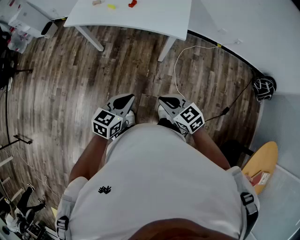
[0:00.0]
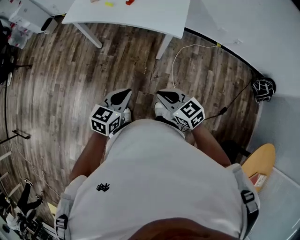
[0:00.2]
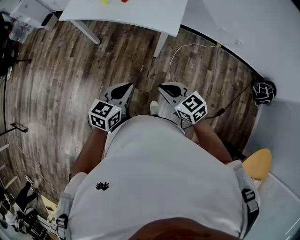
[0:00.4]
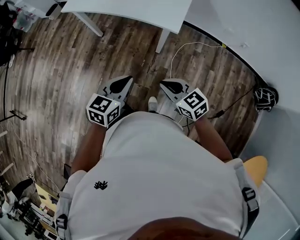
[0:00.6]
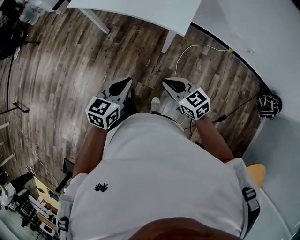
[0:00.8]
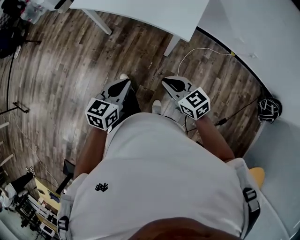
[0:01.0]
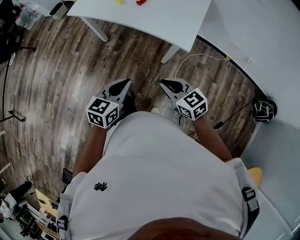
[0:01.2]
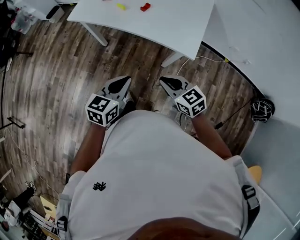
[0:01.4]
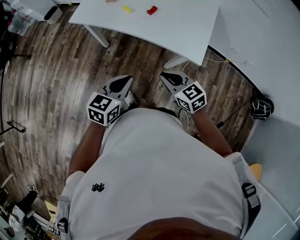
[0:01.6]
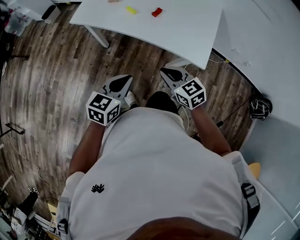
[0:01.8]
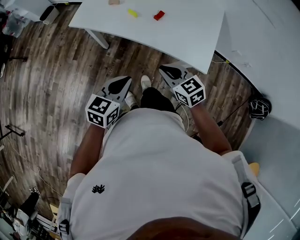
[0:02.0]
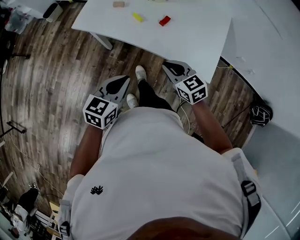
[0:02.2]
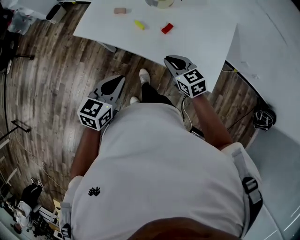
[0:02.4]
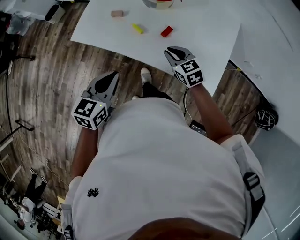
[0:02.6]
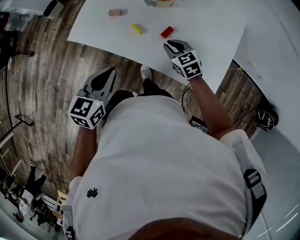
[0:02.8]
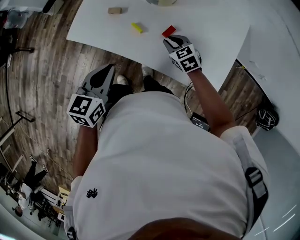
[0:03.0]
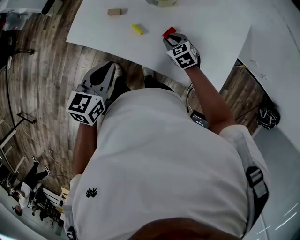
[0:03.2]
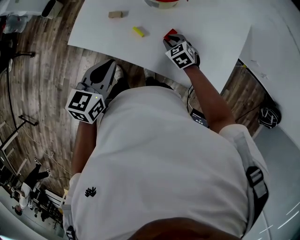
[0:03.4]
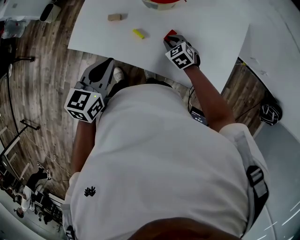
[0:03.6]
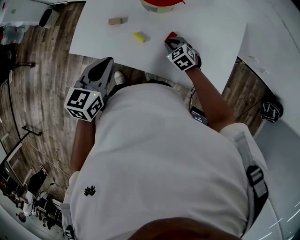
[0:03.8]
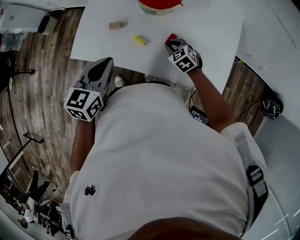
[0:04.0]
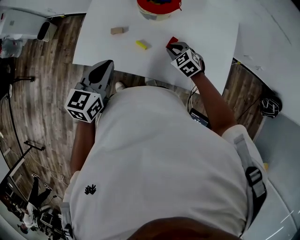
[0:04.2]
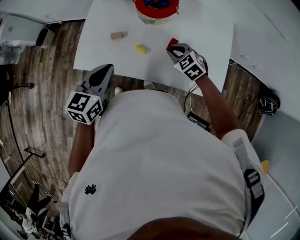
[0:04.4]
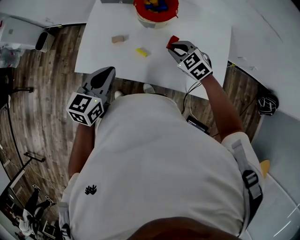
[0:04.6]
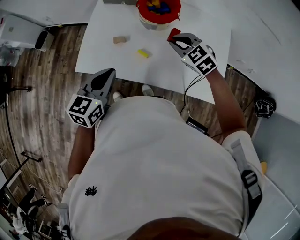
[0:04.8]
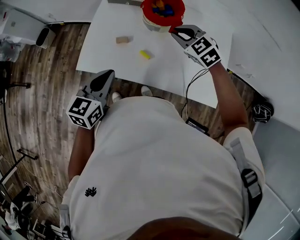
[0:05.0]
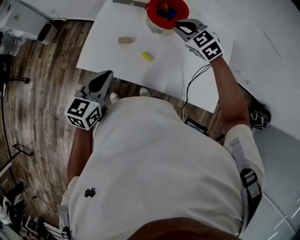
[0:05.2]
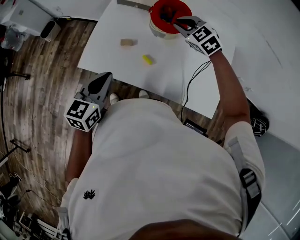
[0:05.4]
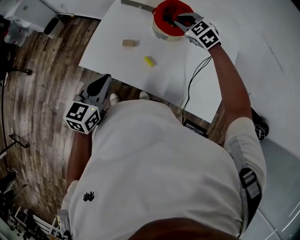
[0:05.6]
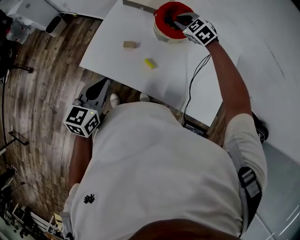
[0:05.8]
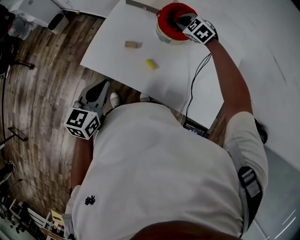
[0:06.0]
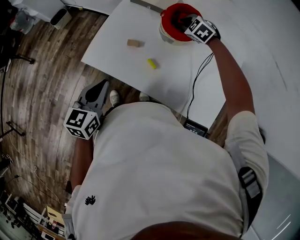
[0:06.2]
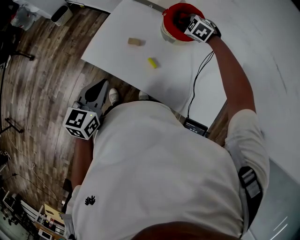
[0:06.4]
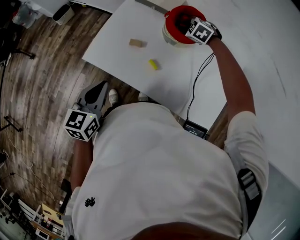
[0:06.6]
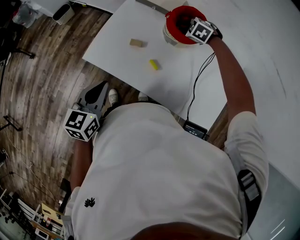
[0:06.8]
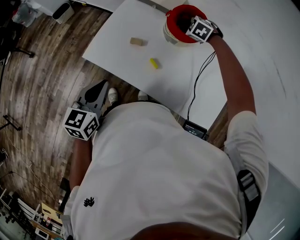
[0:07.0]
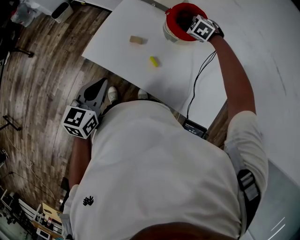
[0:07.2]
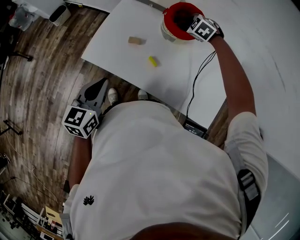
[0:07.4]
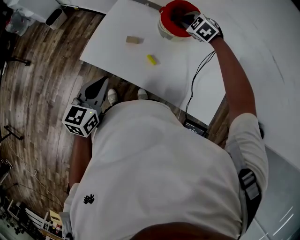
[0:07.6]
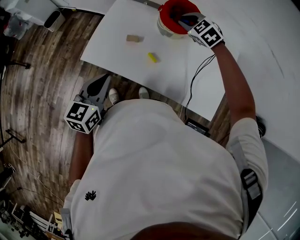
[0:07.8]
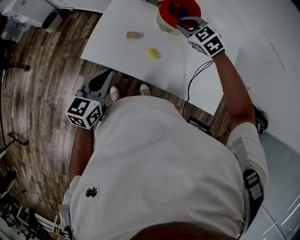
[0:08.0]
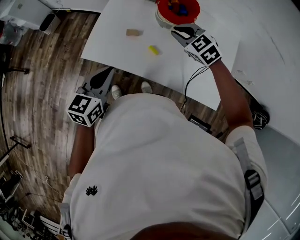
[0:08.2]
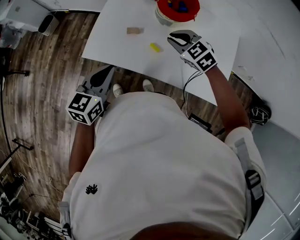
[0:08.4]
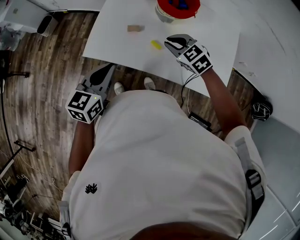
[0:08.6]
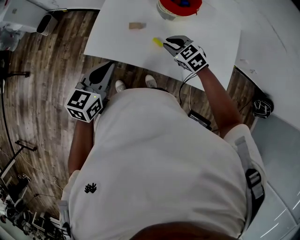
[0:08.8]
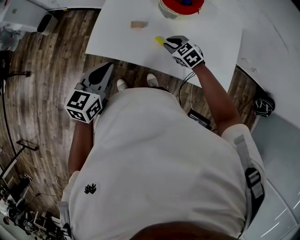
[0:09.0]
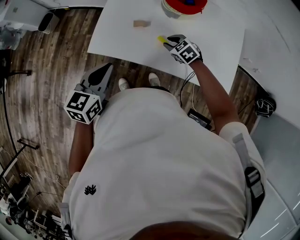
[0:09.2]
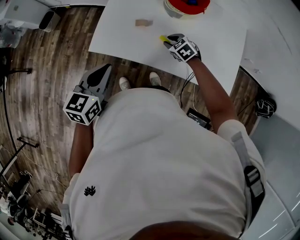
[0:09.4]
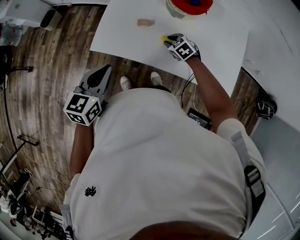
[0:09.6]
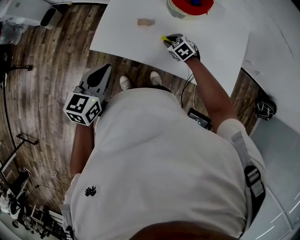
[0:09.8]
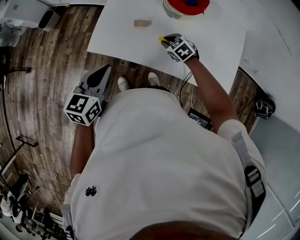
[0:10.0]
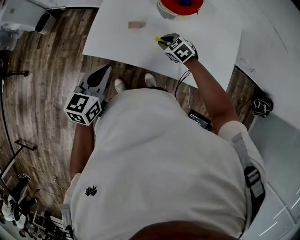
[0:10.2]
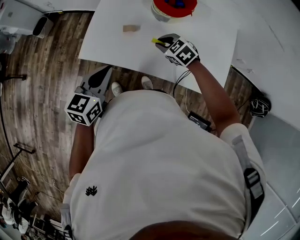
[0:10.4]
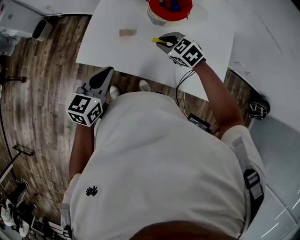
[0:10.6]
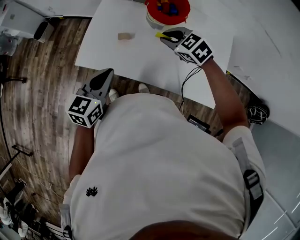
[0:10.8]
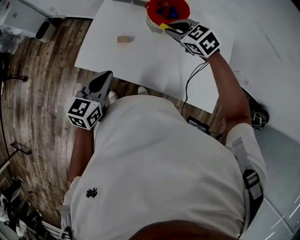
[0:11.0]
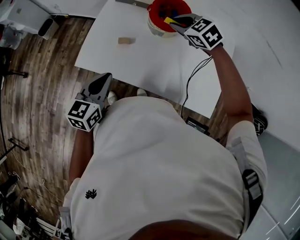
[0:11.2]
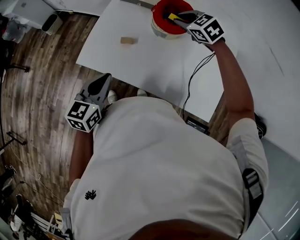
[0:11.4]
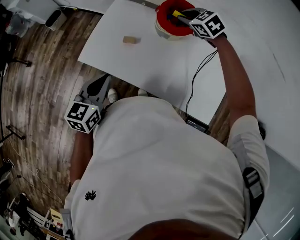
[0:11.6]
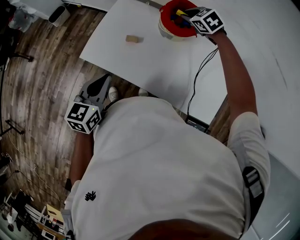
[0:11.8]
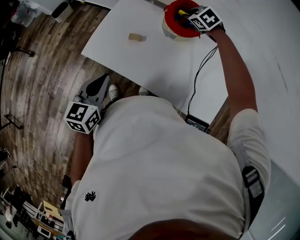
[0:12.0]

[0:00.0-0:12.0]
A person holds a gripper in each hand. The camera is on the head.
0:00.0 to 0:01.6: The grippers both shift forward by about 25 cm.
0:01.6 to 0:03.0: Both grippers travel together forward, some 30 cm.
0:03.0 to 0:04.4: The right gripper travels upward by roughly 5 cm; the left gripper travels forward and to the left by approximately 10 cm.
0:04.4 to 0:06.0: The right gripper moves forward, some 25 cm, and changes its angle by approximately 20 degrees.
0:07.6 to 0:09.0: The right gripper moves backward and downward, roughly 20 cm, and swivels about 30 degrees.
0:09.0 to 0:10.4: The right gripper travels downward and back again, some 5 cm each way.
0:10.4 to 0:12.0: The right gripper heads forward and to the right, covering about 25 cm.

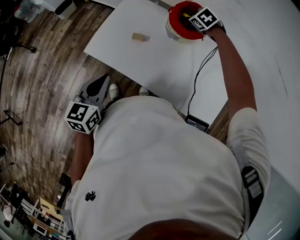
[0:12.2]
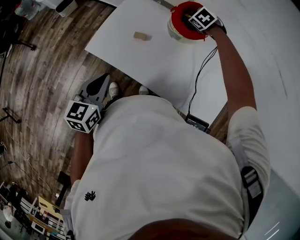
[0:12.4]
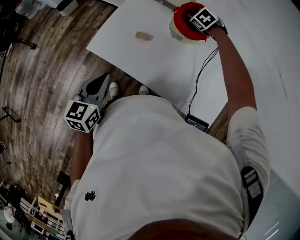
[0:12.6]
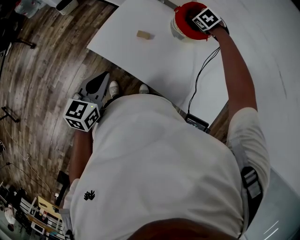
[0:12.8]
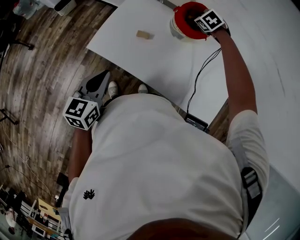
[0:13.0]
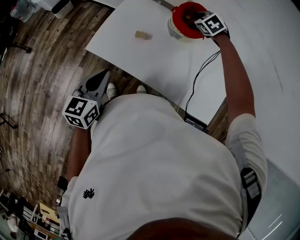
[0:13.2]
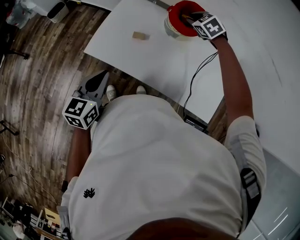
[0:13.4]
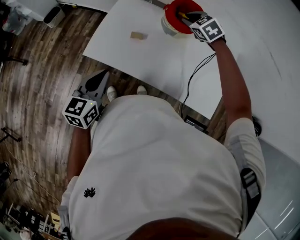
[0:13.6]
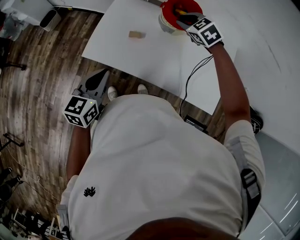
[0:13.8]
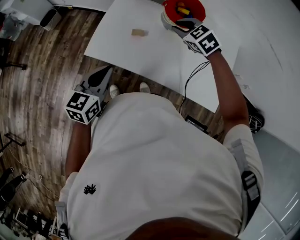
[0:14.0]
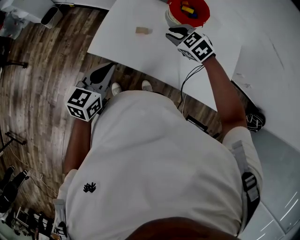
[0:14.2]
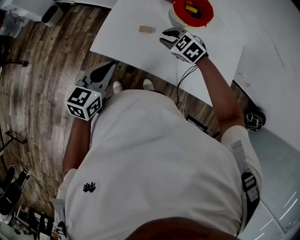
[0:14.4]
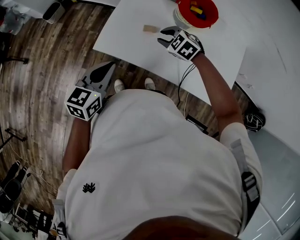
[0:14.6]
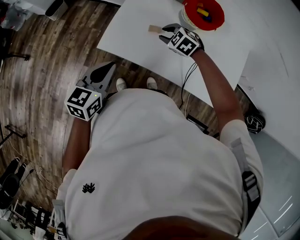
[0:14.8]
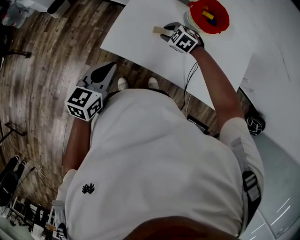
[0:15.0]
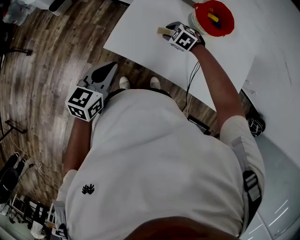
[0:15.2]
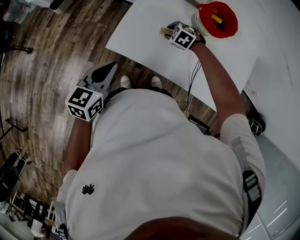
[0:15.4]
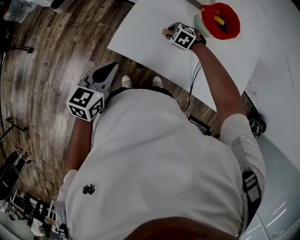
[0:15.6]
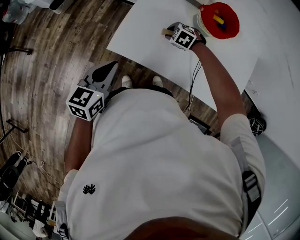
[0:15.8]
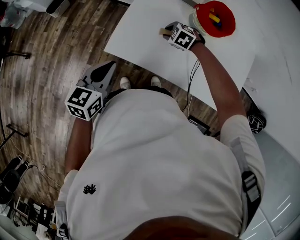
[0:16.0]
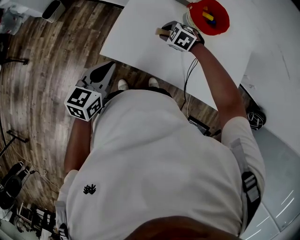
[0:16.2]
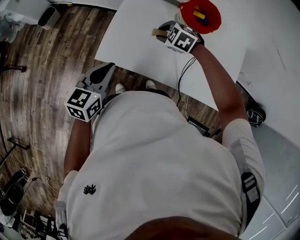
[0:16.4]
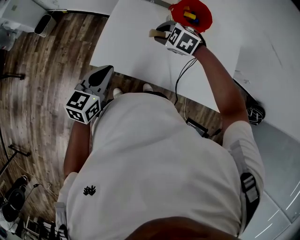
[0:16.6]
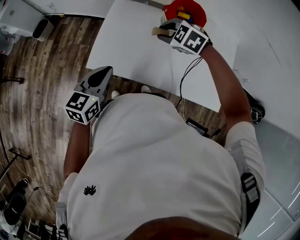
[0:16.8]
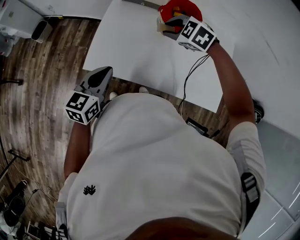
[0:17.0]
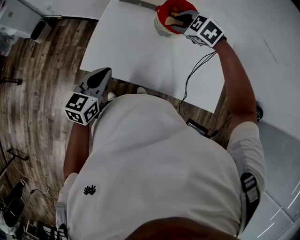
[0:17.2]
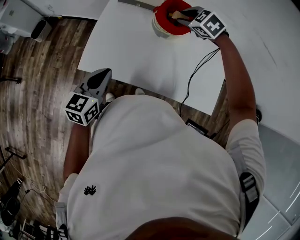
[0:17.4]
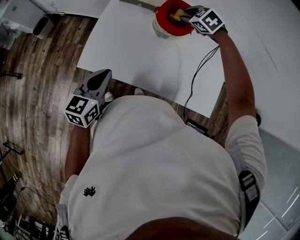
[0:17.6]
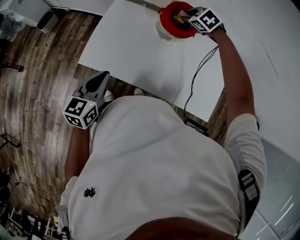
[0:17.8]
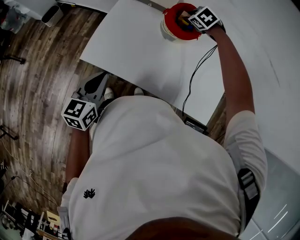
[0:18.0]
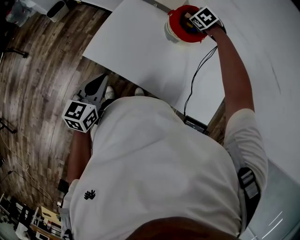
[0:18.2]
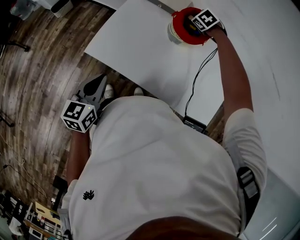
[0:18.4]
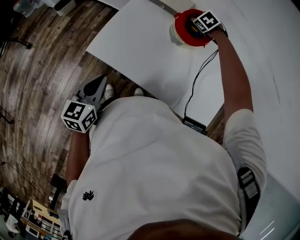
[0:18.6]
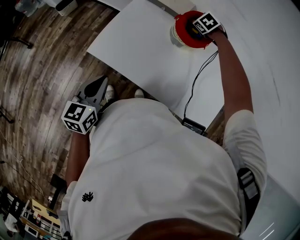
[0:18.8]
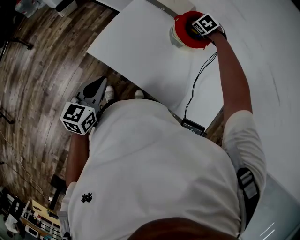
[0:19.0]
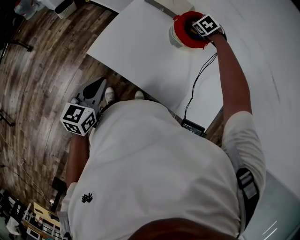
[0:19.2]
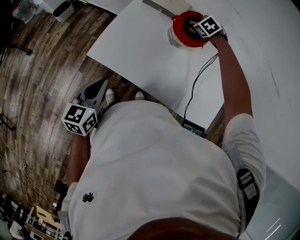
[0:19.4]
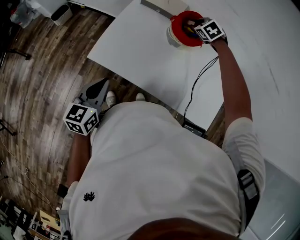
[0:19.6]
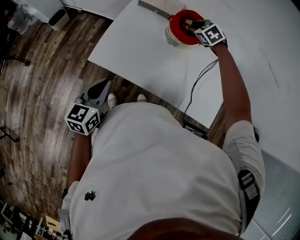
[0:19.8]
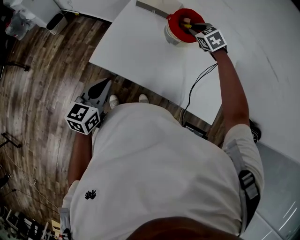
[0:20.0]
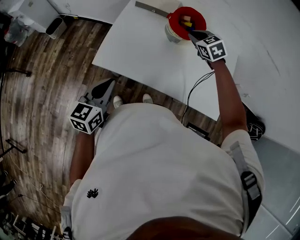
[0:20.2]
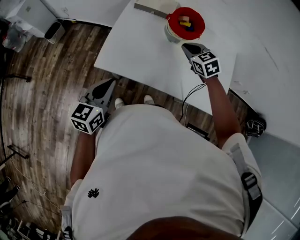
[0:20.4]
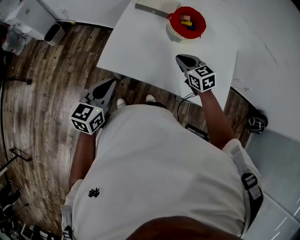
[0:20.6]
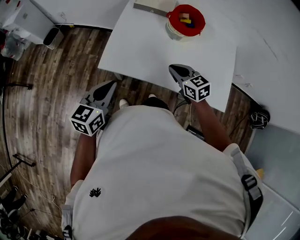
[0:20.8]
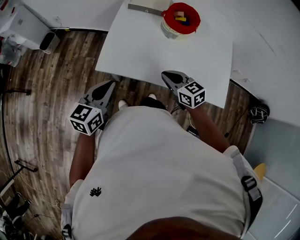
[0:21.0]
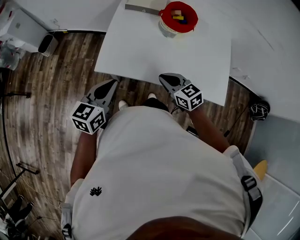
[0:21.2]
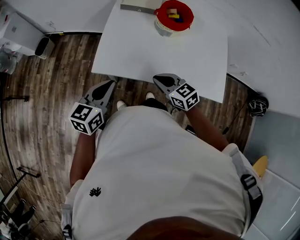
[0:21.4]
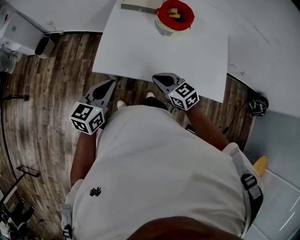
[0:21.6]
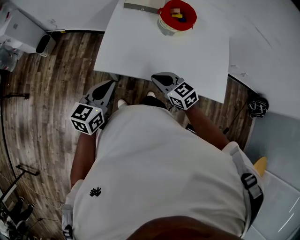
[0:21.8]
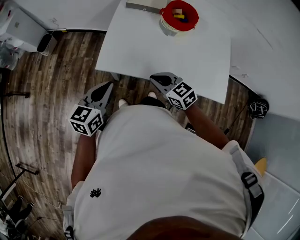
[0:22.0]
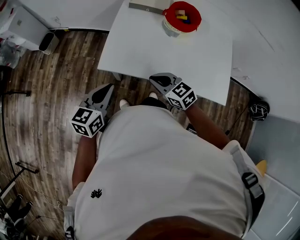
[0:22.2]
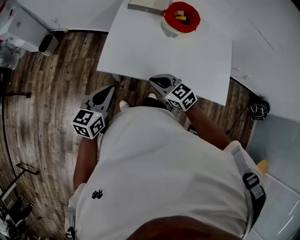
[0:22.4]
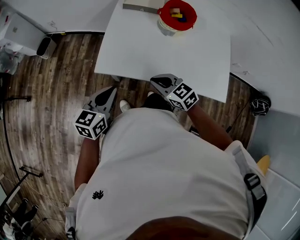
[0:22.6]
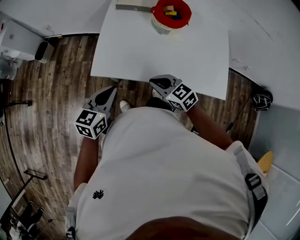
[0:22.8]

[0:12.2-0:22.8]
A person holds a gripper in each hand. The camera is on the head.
0:12.2 to 0:13.8: The right gripper travels backward and upward by some 15 cm.
0:13.8 to 0:15.2: The right gripper shifts some 20 cm downward and to the left, and changes its angle by approximately 20 degrees. Meanwhile the left gripper goes approximately 5 cm to the left.
0:15.2 to 0:16.8: The left gripper shifts about 5 cm to the right. Meanwhile the right gripper goes roughly 15 cm upward.
0:16.8 to 0:18.2: The left gripper moves approximately 5 cm. The right gripper is displaced forward and to the right by roughly 20 cm.
0:18.2 to 0:19.8: The right gripper moves backward and upward, roughly 10 cm.
0:19.8 to 0:21.2: The right gripper heads backward and to the left, covering roughly 35 cm, rotates about 40 degrees, and closes up.

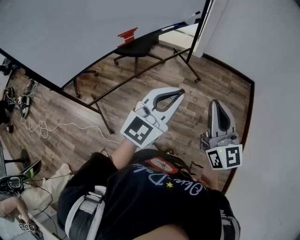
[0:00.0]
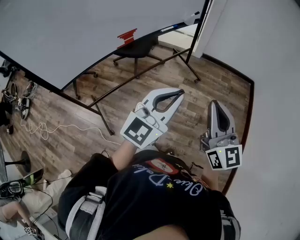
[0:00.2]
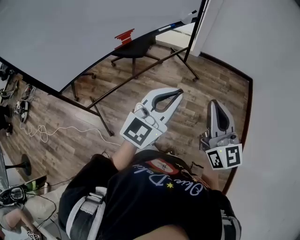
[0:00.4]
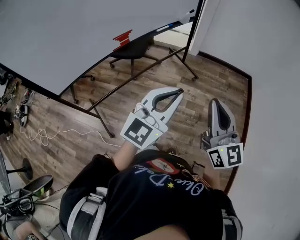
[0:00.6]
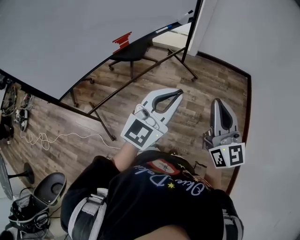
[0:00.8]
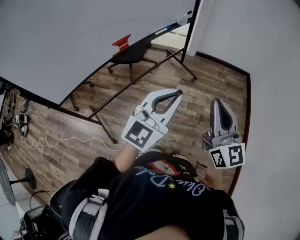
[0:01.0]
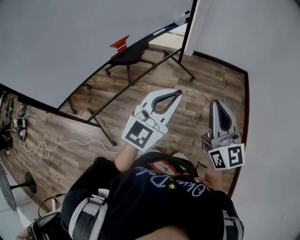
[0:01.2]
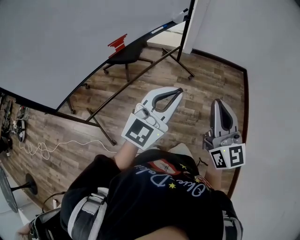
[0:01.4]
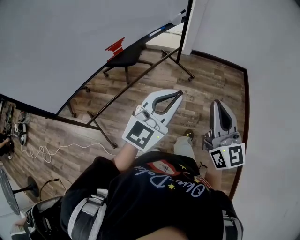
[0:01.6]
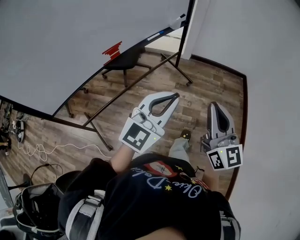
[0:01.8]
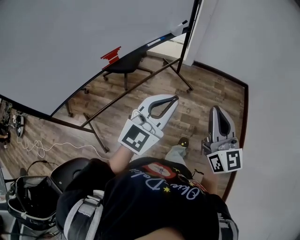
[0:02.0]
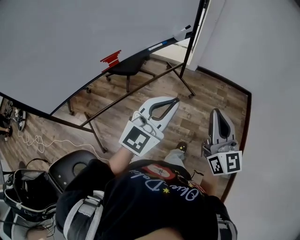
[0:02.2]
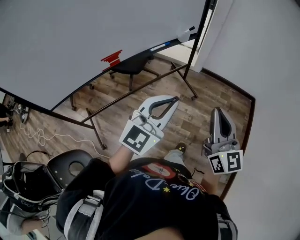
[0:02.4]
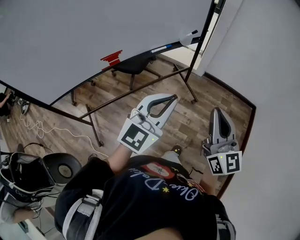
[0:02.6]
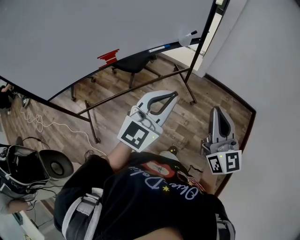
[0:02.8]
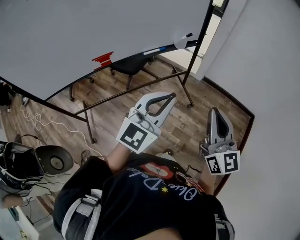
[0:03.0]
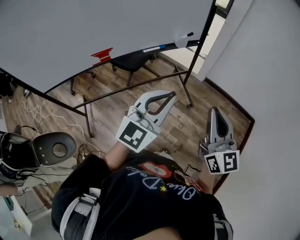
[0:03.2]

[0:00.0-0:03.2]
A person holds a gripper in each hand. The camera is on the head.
0:00.0 to 0:01.6: The left gripper changes place by roughly 5 cm.
0:01.6 to 0:03.2: The grippers both shift forward and to the right by approximately 30 cm. The left gripper rotates some 30 degrees; the right gripper rotates some 20 degrees.
